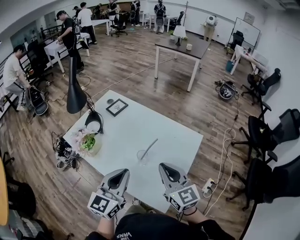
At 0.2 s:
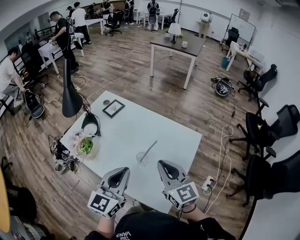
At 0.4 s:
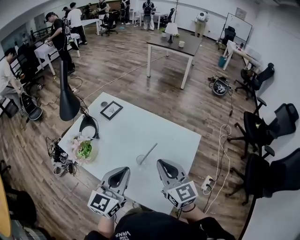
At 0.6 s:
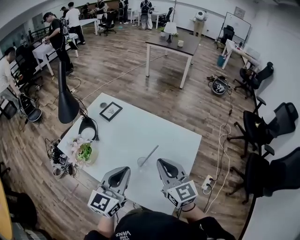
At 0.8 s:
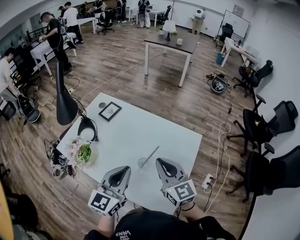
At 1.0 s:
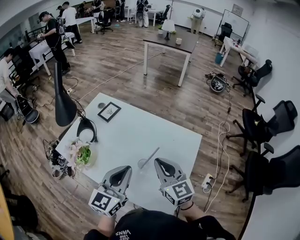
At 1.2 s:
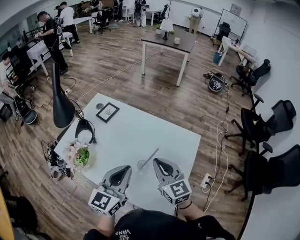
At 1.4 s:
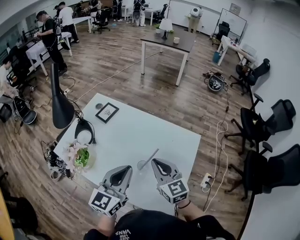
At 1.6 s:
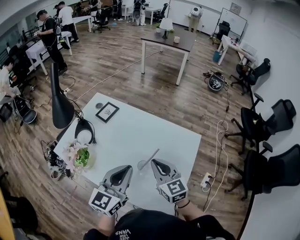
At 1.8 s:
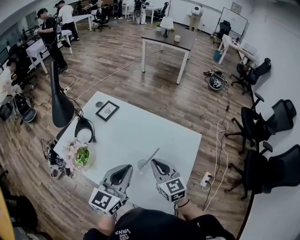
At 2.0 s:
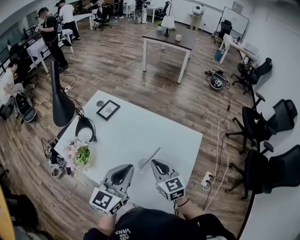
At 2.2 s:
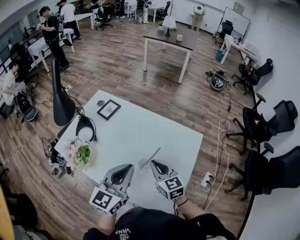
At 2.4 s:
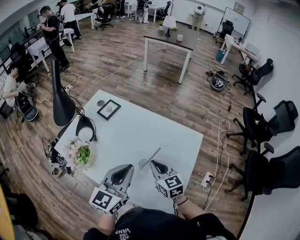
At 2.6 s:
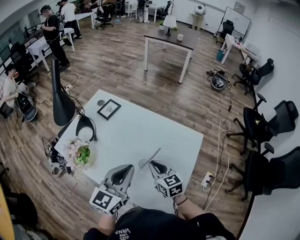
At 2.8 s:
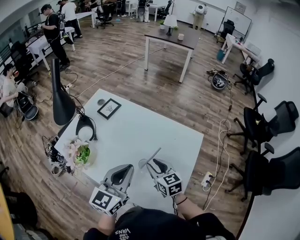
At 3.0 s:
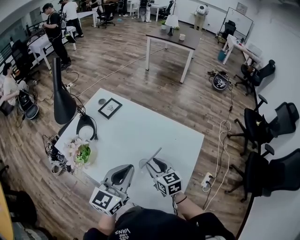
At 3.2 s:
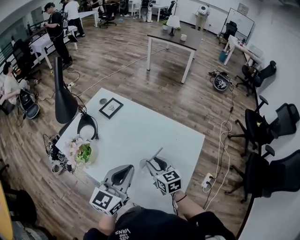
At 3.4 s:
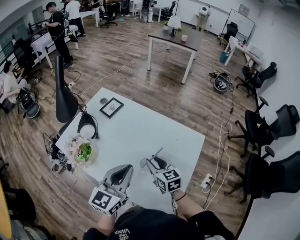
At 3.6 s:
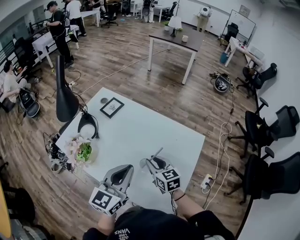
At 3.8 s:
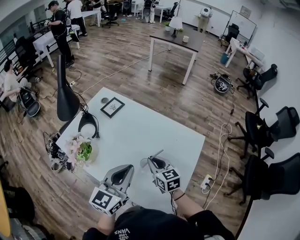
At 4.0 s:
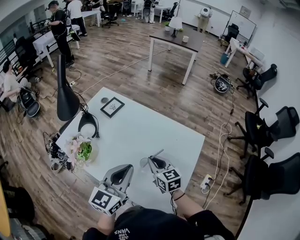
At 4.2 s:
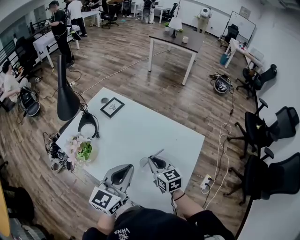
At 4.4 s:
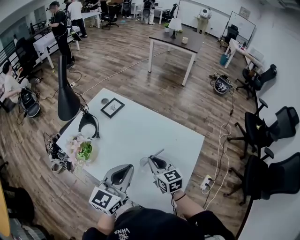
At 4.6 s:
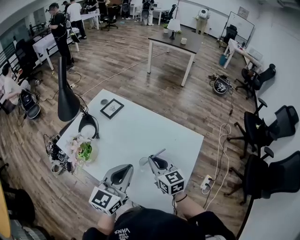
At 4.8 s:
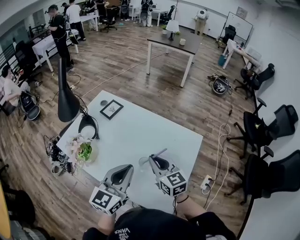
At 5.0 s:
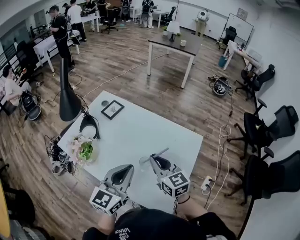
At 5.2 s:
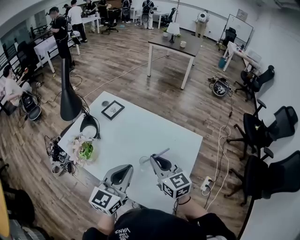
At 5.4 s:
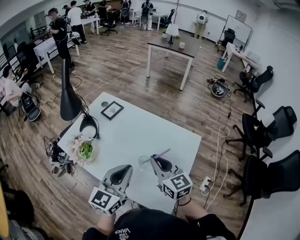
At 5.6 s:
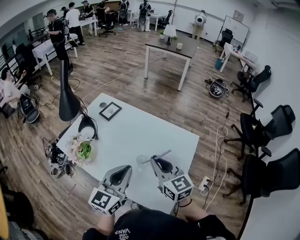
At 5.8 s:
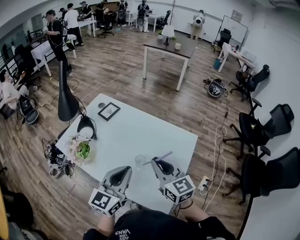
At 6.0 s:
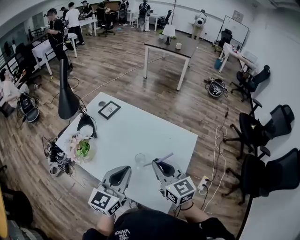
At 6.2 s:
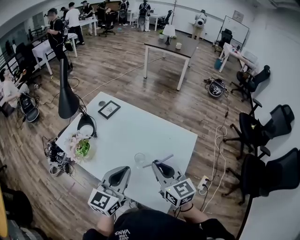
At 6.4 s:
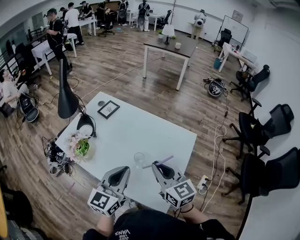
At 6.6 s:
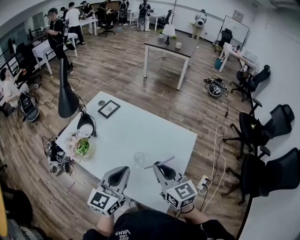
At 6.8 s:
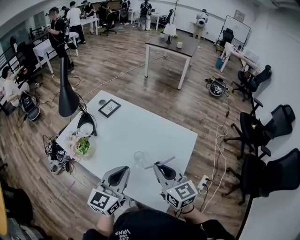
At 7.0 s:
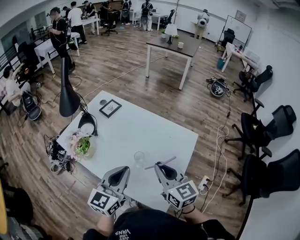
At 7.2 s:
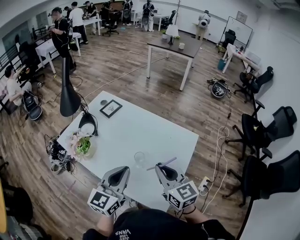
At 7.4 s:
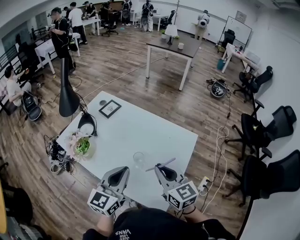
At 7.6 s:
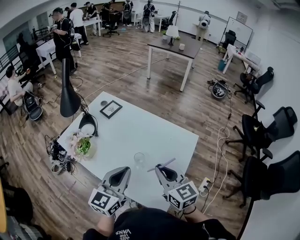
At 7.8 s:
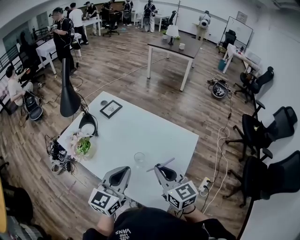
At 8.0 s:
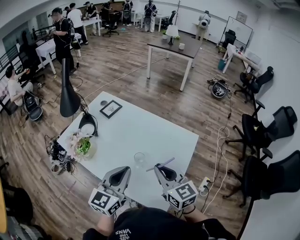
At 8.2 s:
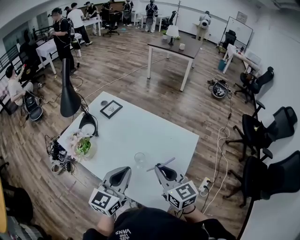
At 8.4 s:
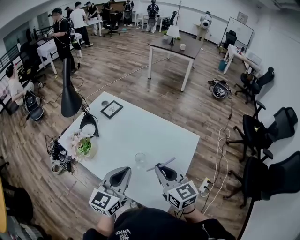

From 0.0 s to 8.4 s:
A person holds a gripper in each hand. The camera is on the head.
From 0.0 s to 1.4 s: The right gripper goes some 10 cm forward and downward; the left gripper moves forward, roughly 10 cm.
From 1.4 s to 2.8 s: The right gripper heads downward, covering some 10 cm.
From 2.8 s to 4.2 s: The grippers make only small movements.
From 4.2 s to 5.6 s: The right gripper goes roughly 15 cm upward and backward.
From 5.6 s to 7.0 s: The right gripper moves some 5 cm.
From 7.0 s to 8.4 s: Neither gripper changes place.

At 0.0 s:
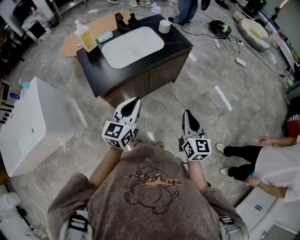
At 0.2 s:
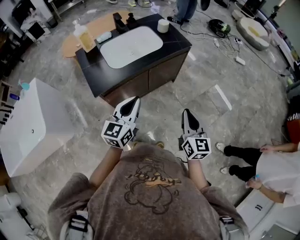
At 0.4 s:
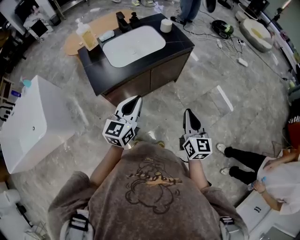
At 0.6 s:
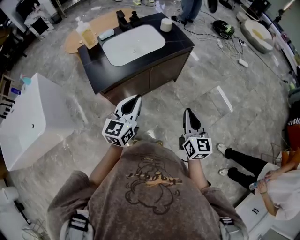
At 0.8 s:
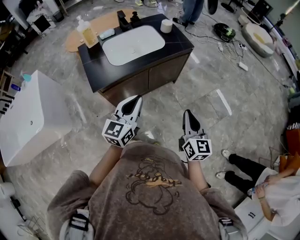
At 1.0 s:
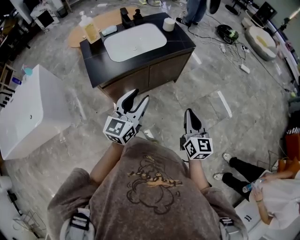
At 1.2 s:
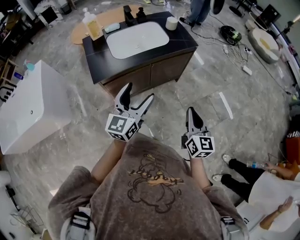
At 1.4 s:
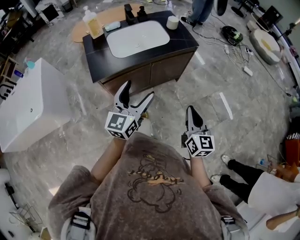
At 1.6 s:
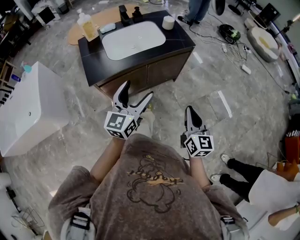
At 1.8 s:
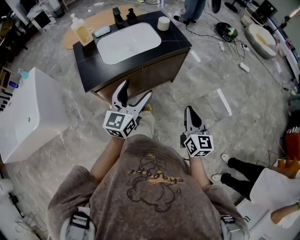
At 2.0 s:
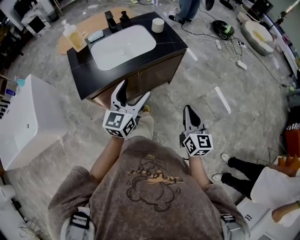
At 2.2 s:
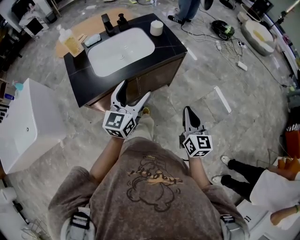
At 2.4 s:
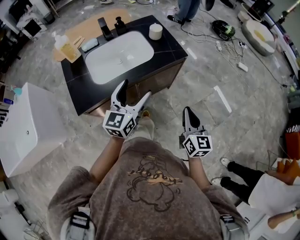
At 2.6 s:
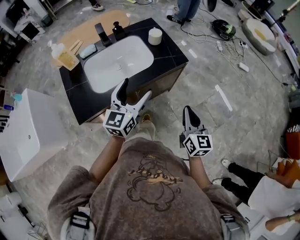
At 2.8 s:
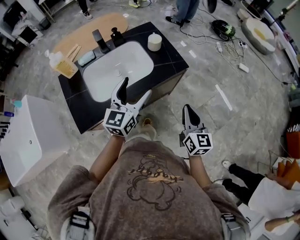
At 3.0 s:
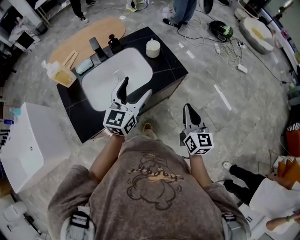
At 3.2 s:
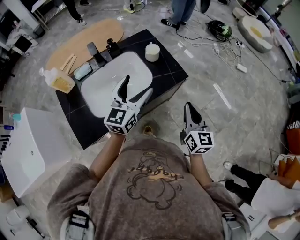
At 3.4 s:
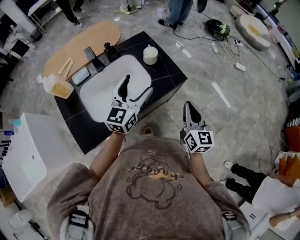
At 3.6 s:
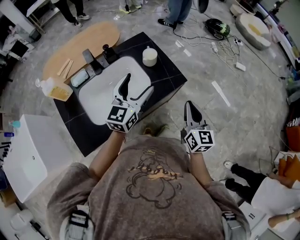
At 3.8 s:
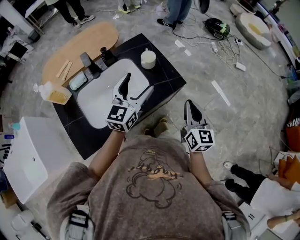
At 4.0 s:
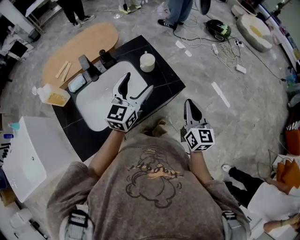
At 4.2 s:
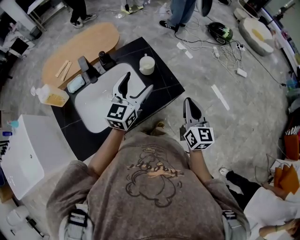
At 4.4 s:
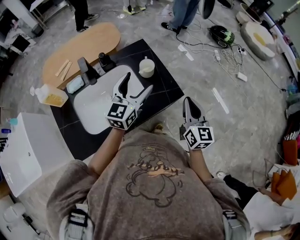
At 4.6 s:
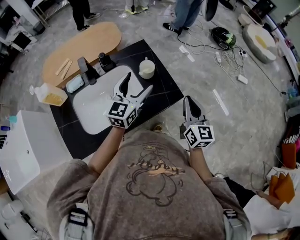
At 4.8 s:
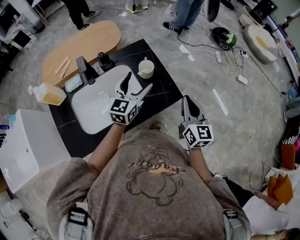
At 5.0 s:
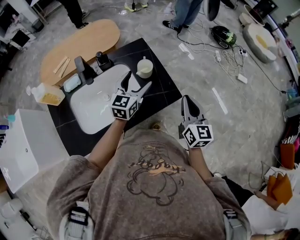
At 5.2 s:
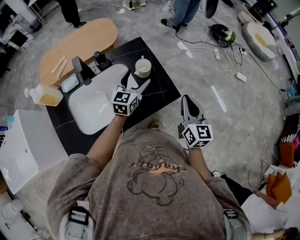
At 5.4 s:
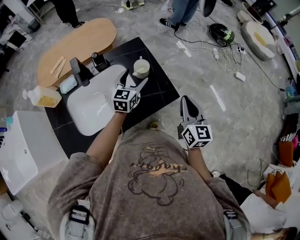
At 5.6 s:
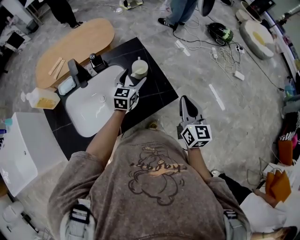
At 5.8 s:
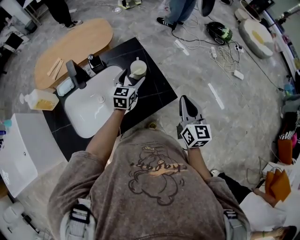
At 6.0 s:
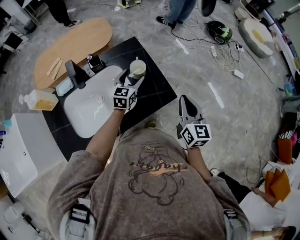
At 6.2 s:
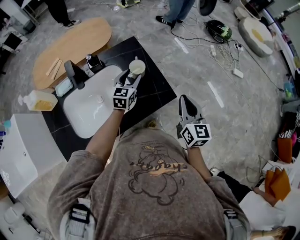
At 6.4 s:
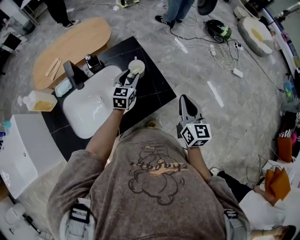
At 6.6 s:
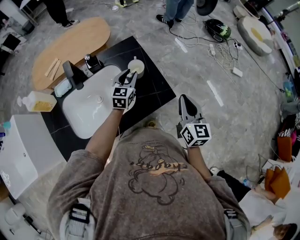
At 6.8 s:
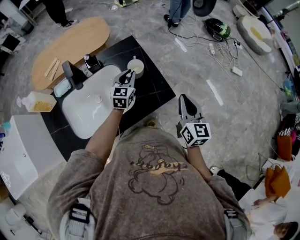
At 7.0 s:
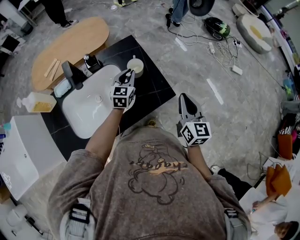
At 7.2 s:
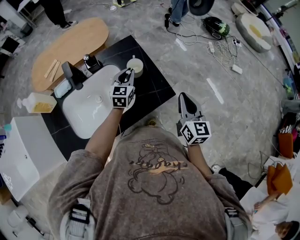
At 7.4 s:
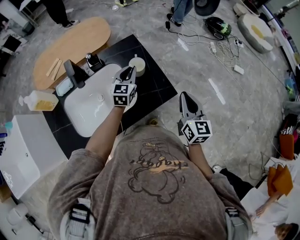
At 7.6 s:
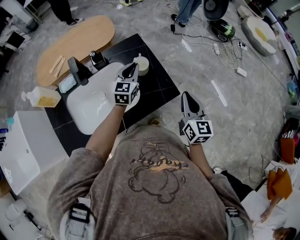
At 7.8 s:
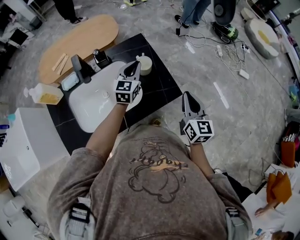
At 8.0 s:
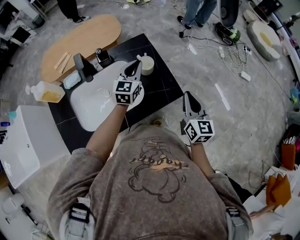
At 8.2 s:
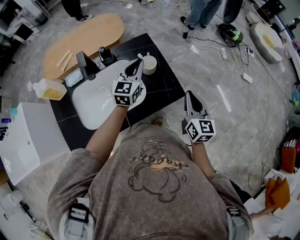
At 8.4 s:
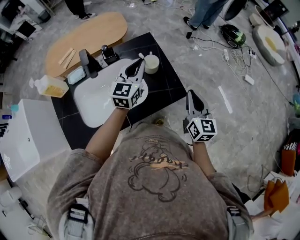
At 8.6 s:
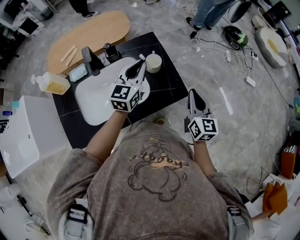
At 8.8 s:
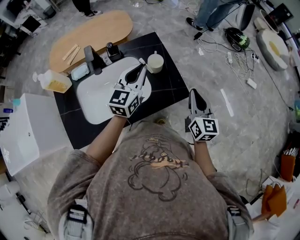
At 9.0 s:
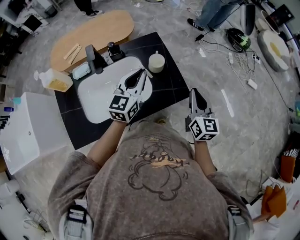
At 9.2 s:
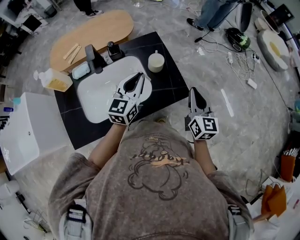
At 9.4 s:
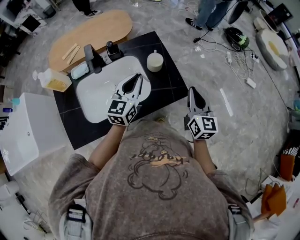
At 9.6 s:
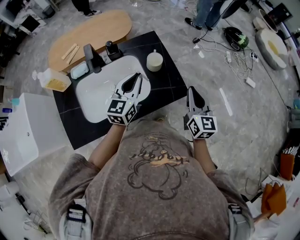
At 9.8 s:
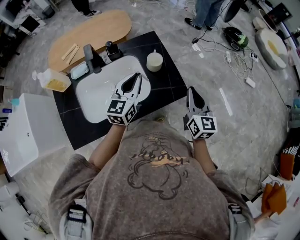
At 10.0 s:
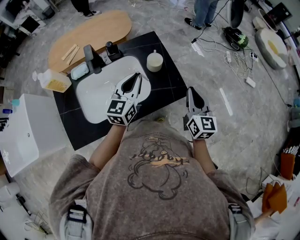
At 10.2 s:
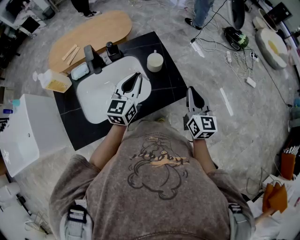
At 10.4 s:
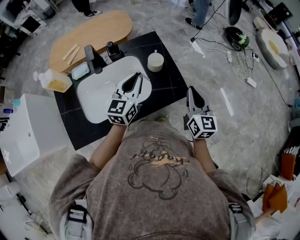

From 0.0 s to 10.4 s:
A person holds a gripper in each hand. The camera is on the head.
From 0.0 s to 1.4 s: The right gripper goes roughly 5 cm to the right; the left gripper opens.
From 1.4 s to 3.0 s: The grippers both shift forward by about 35 cm.
From 3.0 s to 4.4 s: The grippers both shift forward by about 20 cm.
From 4.4 s to 6.0 s: The left gripper travels downward and forward by roughly 20 cm, while the right gripper shifts by approximately 5 cm.
From 6.0 s to 7.4 s: The left gripper closes its fingers.
From 7.4 s to 9.0 s: The left gripper travels upward and backward by roughly 15 cm.
From 9.0 s to 10.4 s: There are only small adjustments of the grippers.

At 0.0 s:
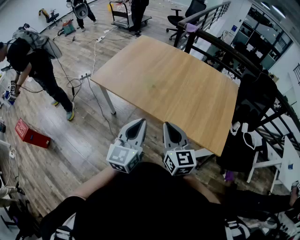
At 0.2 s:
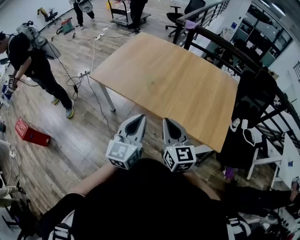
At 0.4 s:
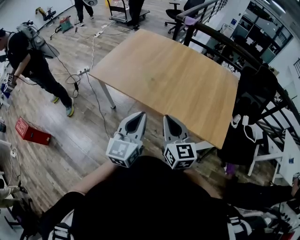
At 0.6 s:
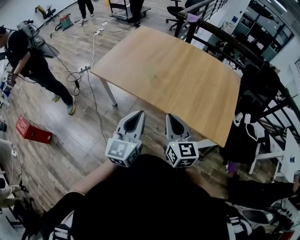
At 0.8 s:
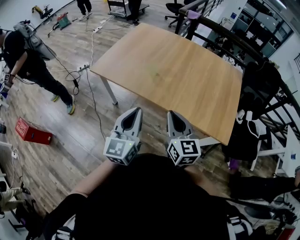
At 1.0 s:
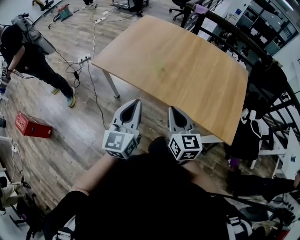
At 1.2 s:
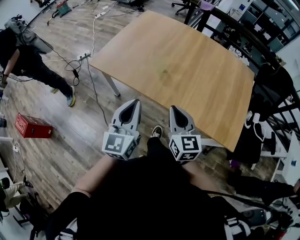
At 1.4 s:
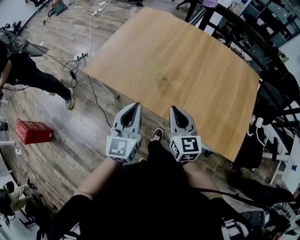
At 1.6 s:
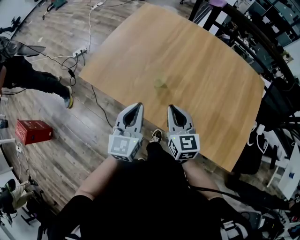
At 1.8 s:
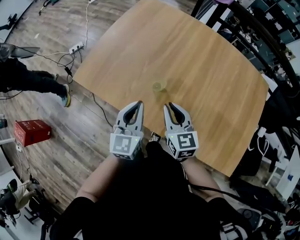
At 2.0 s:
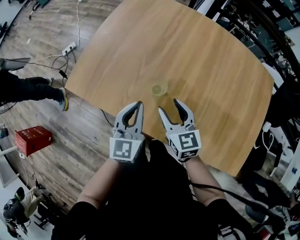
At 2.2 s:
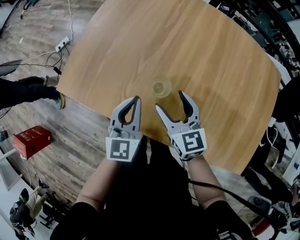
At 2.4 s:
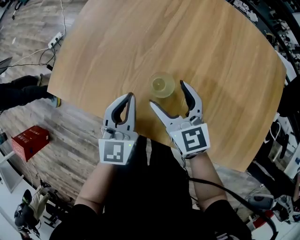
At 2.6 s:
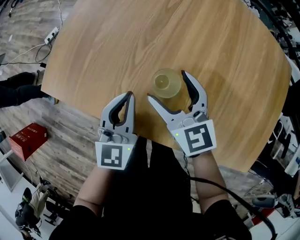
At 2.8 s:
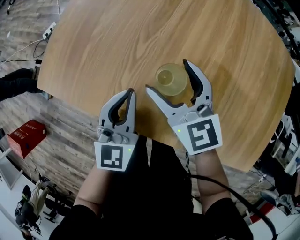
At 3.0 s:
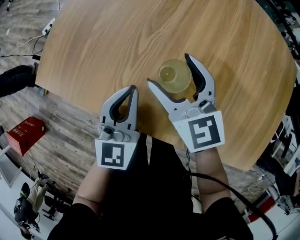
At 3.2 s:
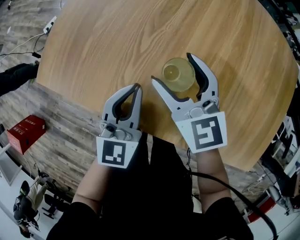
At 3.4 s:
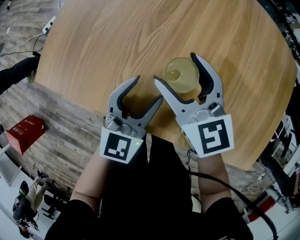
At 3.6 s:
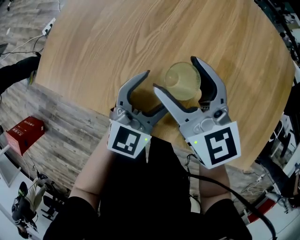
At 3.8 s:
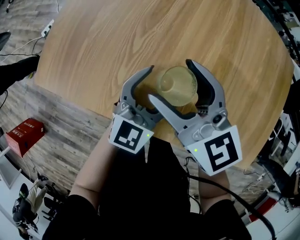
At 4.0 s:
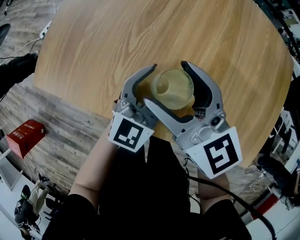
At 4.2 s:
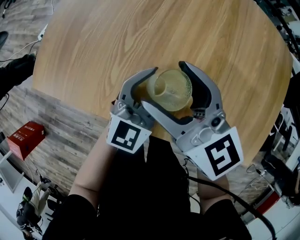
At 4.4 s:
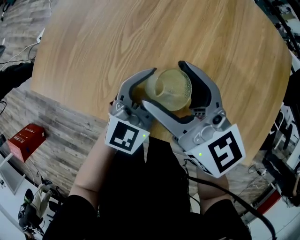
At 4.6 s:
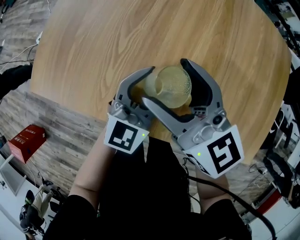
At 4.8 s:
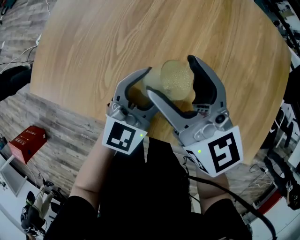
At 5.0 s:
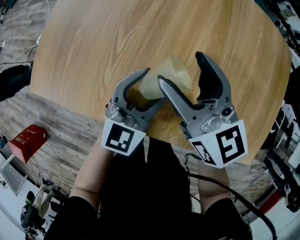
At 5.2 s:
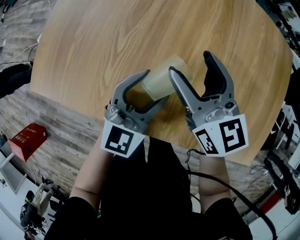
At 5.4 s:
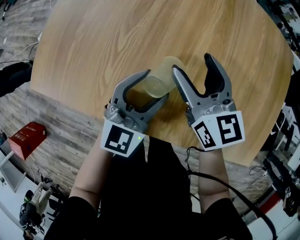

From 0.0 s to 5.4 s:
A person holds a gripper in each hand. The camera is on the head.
From 0.0 s to 1.4 s: The left gripper moves forward, to the left and downward, roughly 25 cm; the right gripper heads forward and downward, covering approximately 25 cm.
From 1.4 s to 2.8 s: The two grippers go some 35 cm forward and downward. The right gripper opens its fingers.
From 2.8 s to 4.0 s: The left gripper goes about 10 cm to the right, changes its angle by some 30 degrees, and opens its fingers. Meanwhile the right gripper is displaced upward by approximately 5 cm.
From 4.0 s to 5.4 s: The right gripper goes approximately 10 cm to the right.
